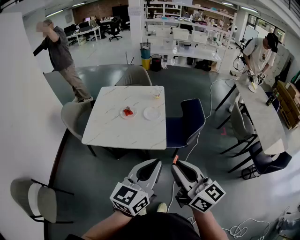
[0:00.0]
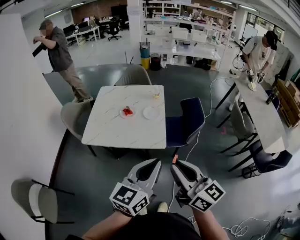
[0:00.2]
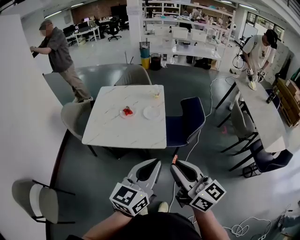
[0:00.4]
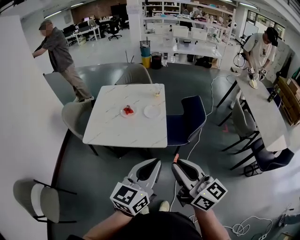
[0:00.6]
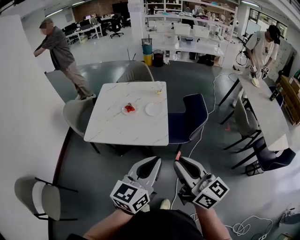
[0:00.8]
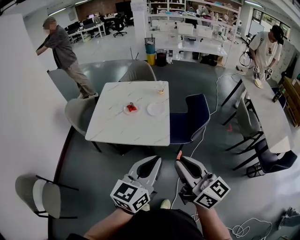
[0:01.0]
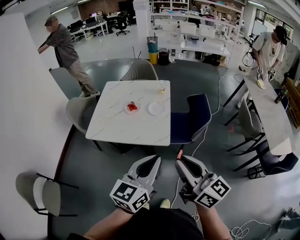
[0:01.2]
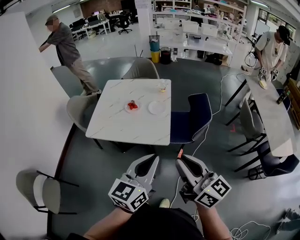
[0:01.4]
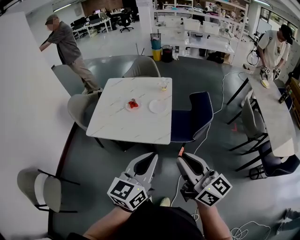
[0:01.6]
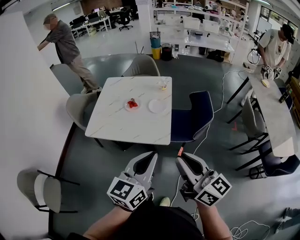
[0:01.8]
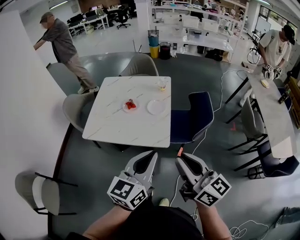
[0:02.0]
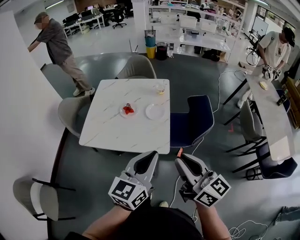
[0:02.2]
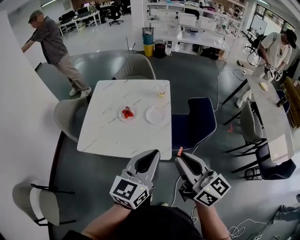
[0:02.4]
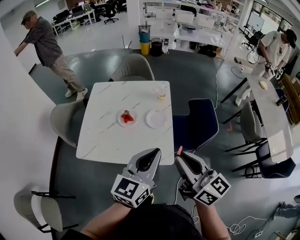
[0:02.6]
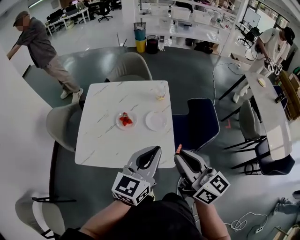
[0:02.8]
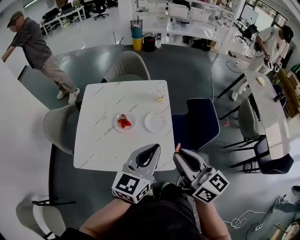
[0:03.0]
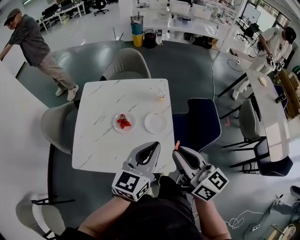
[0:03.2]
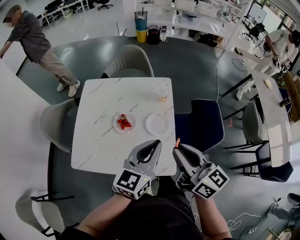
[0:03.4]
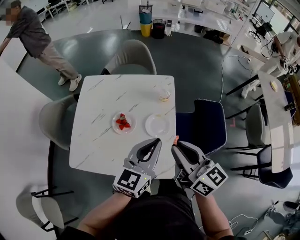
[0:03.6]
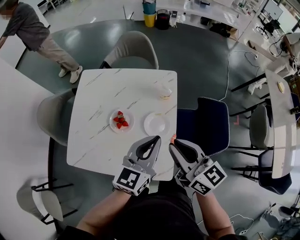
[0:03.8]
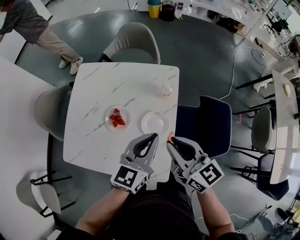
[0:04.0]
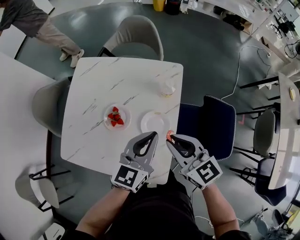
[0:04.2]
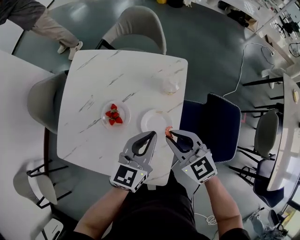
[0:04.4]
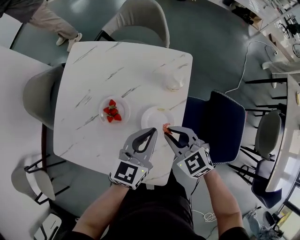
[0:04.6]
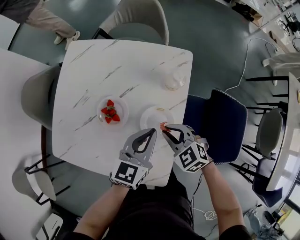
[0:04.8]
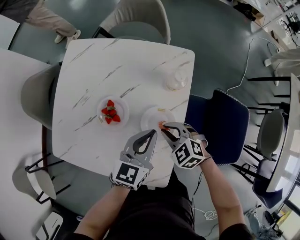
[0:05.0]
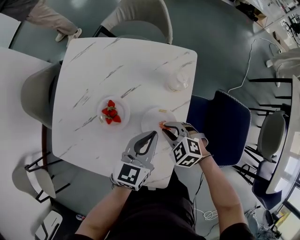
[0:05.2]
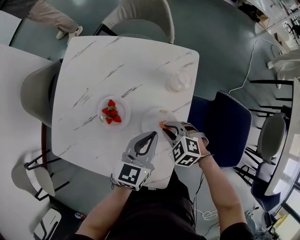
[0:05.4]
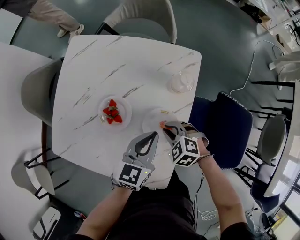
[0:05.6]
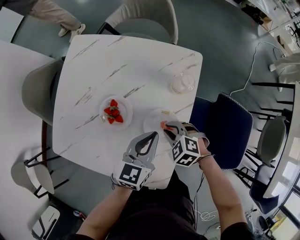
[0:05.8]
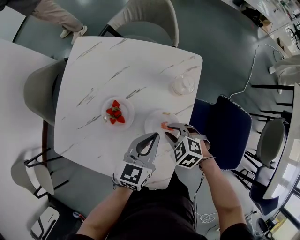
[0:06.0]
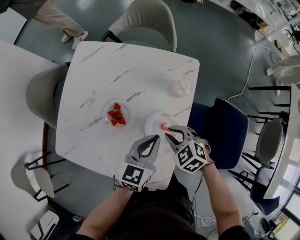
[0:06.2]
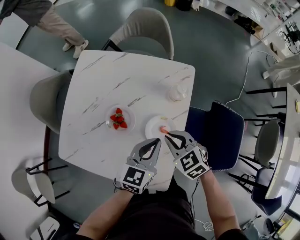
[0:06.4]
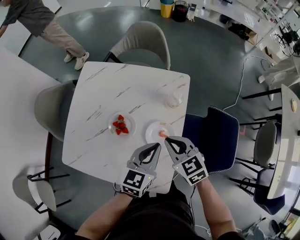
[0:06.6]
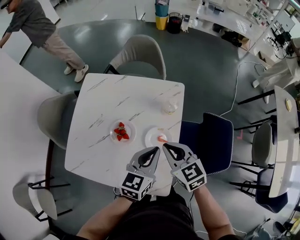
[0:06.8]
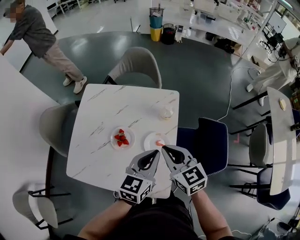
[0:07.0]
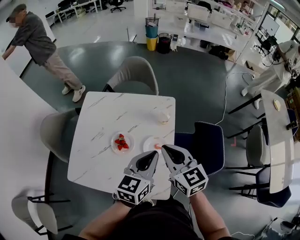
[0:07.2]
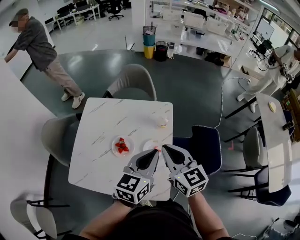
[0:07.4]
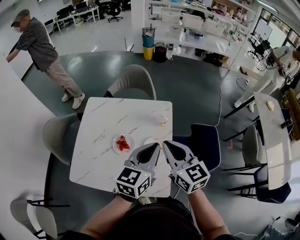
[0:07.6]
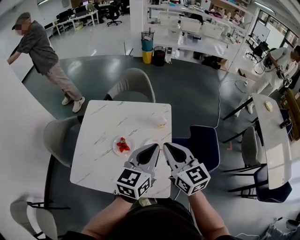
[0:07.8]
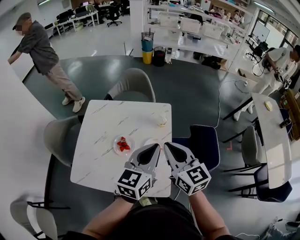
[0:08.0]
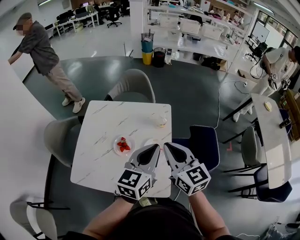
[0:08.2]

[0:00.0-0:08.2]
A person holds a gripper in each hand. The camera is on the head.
0:00.0 to 0:01.6: The right gripper ends up approximately 5 cm from where it was.
0:01.6 to 0:03.2: The two grippers go approximately 30 cm forward.
0:03.2 to 0:05.0: The two grippers go roughly 35 cm downward and forward. The left gripper turns by about 20 degrees. The right gripper points its fingers some 50 degrees further downward.
0:05.0 to 0:06.6: The right gripper travels upward by some 15 cm, and turns by some 30 degrees, while the left gripper moves upward, approximately 5 cm.
0:06.6 to 0:08.2: Both grippers travel together upward, approximately 20 cm. The right gripper swivels approximately 30 degrees.

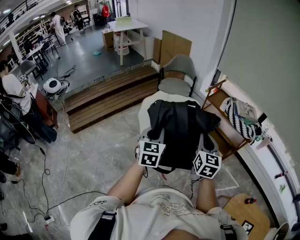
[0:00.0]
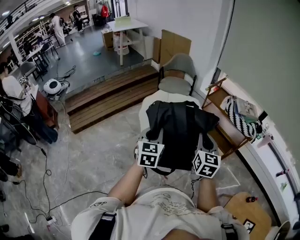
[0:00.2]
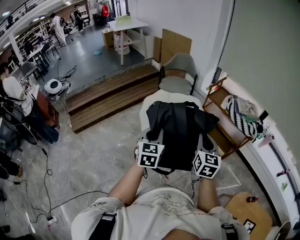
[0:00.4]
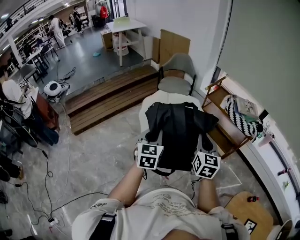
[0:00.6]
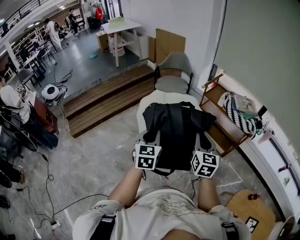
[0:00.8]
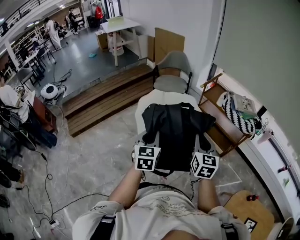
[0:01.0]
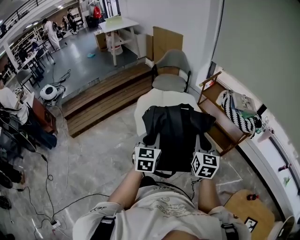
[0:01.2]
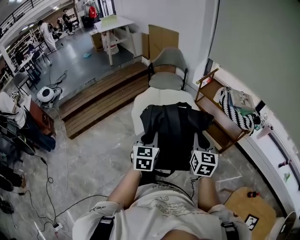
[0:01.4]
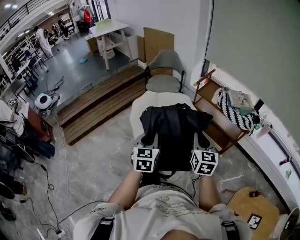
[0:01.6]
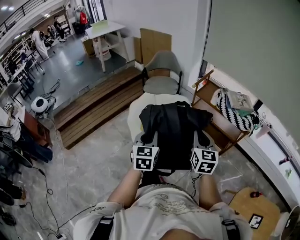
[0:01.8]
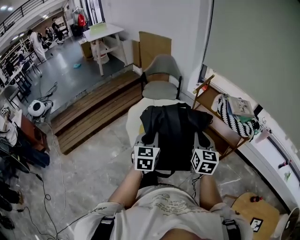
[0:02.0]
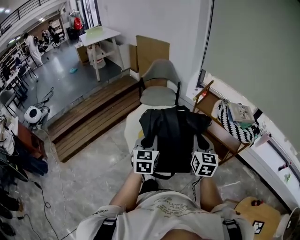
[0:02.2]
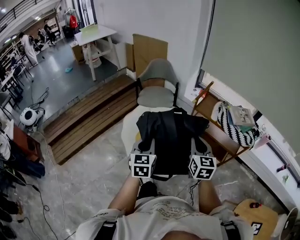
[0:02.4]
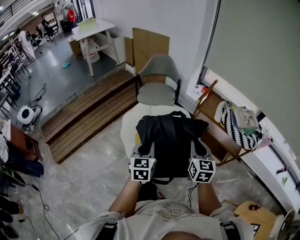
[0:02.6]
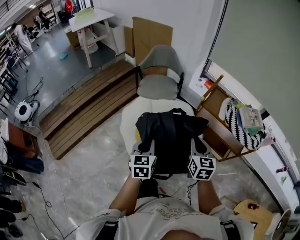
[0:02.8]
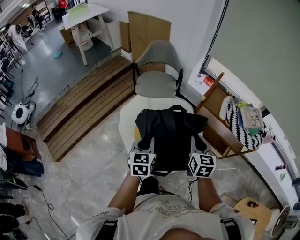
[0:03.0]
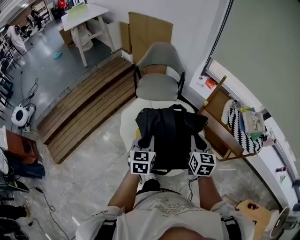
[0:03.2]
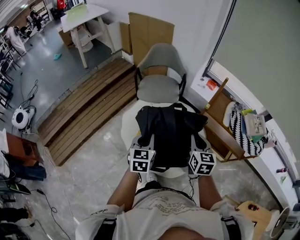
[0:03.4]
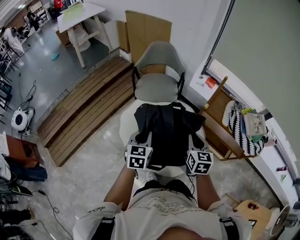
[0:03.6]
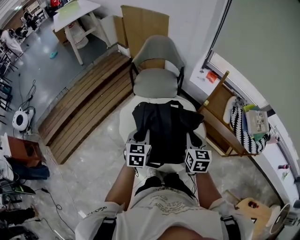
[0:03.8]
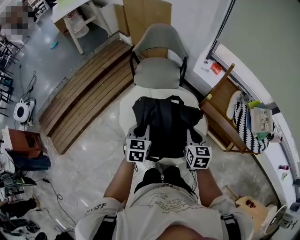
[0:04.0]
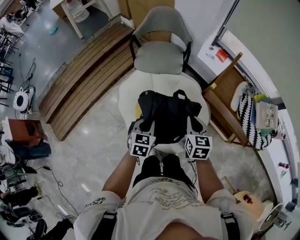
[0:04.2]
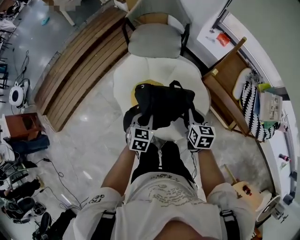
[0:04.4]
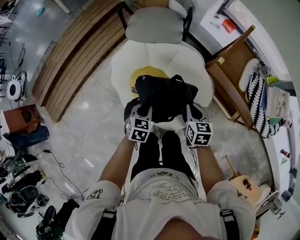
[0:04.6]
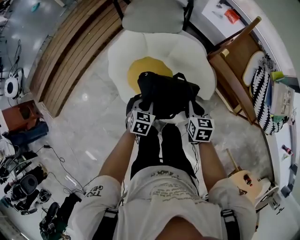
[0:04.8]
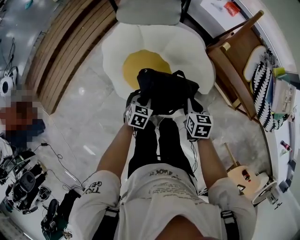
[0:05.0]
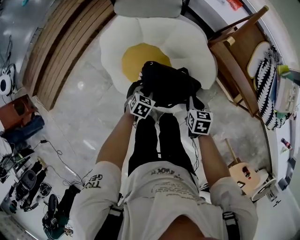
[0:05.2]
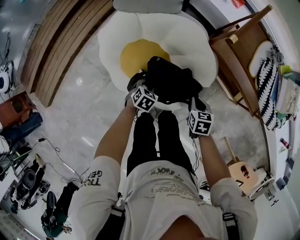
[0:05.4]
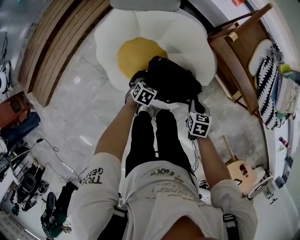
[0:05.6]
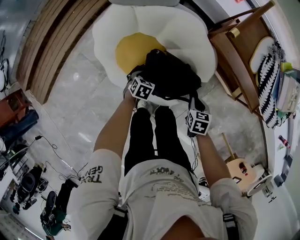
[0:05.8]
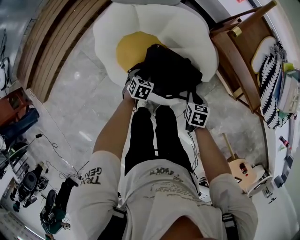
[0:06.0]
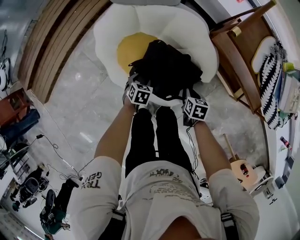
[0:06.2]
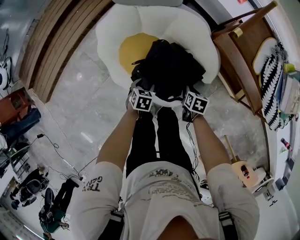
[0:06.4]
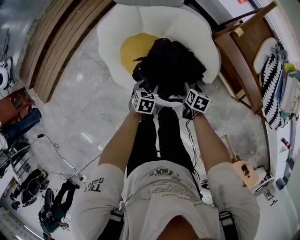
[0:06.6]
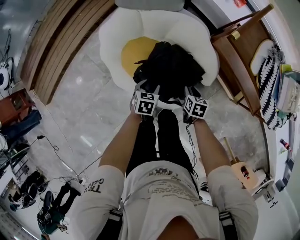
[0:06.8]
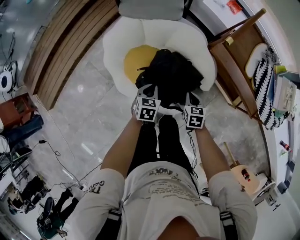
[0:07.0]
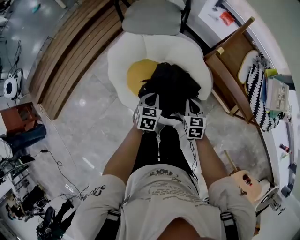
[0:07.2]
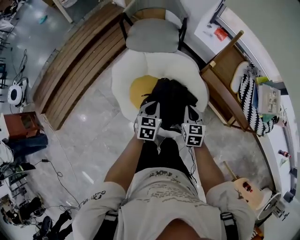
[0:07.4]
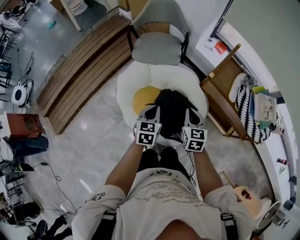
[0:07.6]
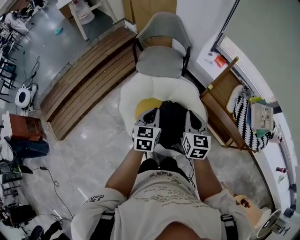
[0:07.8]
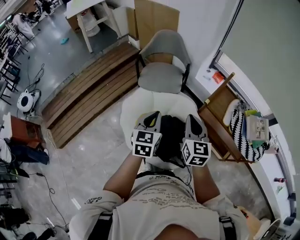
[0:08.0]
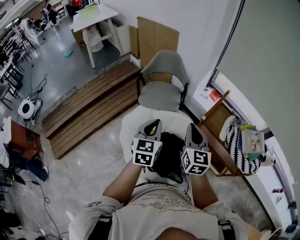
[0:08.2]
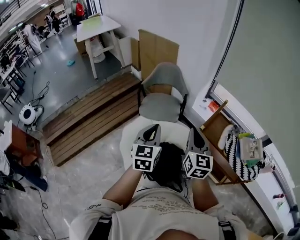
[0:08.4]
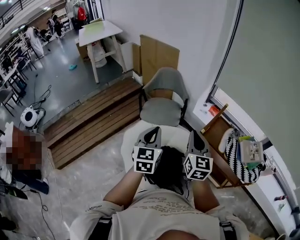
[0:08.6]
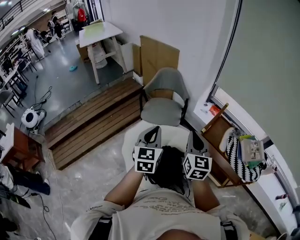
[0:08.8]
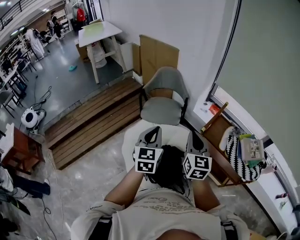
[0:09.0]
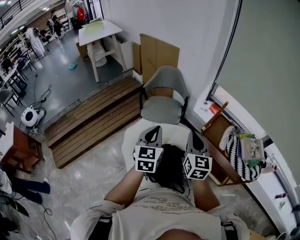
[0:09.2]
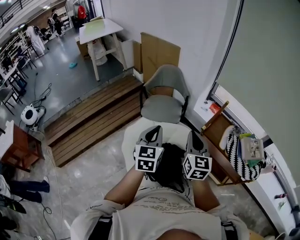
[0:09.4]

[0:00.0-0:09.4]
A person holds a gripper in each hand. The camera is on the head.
0:00.0 to 0:01.6: The right gripper goes roughly 10 cm forward and to the right; the left gripper travels forward by approximately 5 cm.
0:01.6 to 0:03.2: The two grippers go approximately 30 cm forward.
0:03.2 to 0:04.8: Both grippers travel together downward, about 30 cm. The left gripper turns by some 30 degrees, while the right gripper turns by about 30 degrees.
0:04.8 to 0:06.2: The two grippers go some 15 cm downward. The left gripper opens its fingers.
0:06.2 to 0:07.8: Both grippers travel together upward, roughly 40 cm. The left gripper points its fingers approximately 40 degrees further upward, and closes up. Meanwhile the right gripper points its fingers roughly 40 degrees further upward, and opens, then closes once more.
0:07.8 to 0:09.4: The grippers both shift upward by approximately 15 cm.

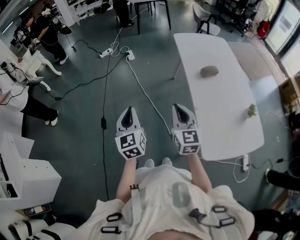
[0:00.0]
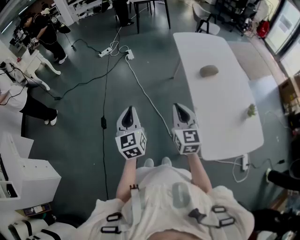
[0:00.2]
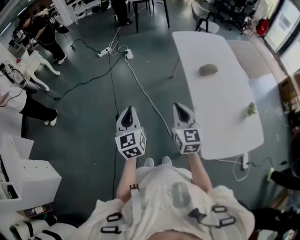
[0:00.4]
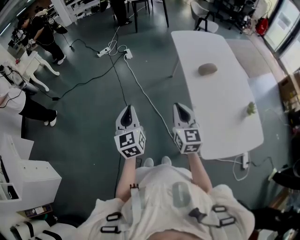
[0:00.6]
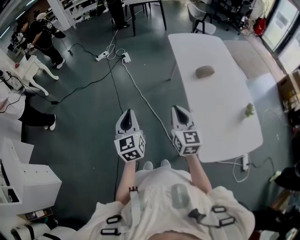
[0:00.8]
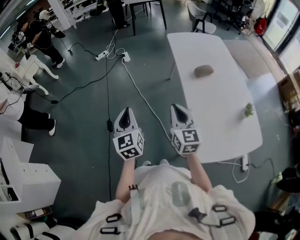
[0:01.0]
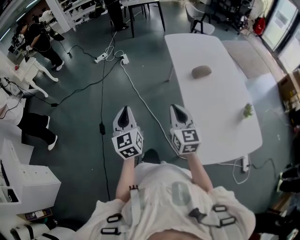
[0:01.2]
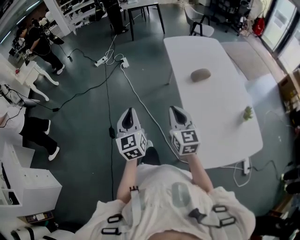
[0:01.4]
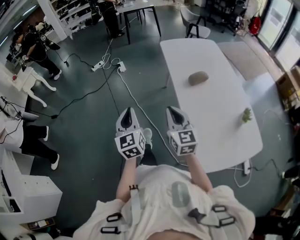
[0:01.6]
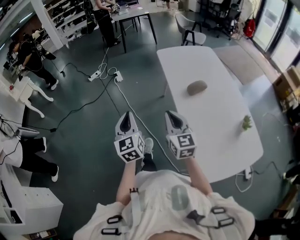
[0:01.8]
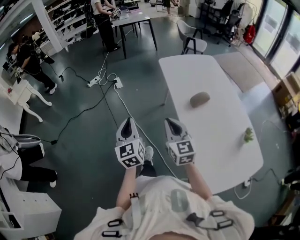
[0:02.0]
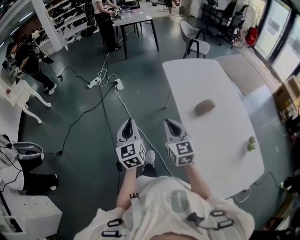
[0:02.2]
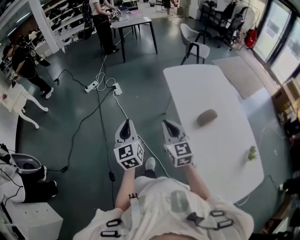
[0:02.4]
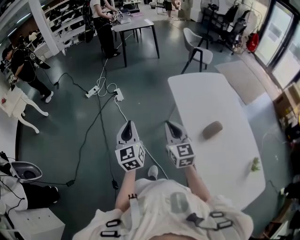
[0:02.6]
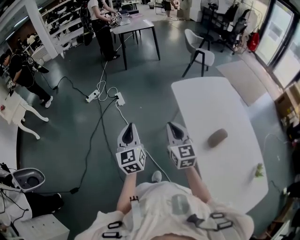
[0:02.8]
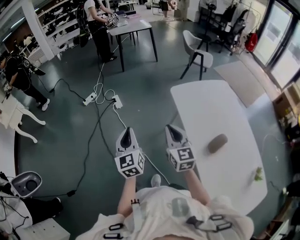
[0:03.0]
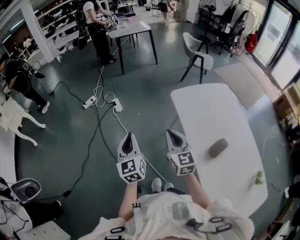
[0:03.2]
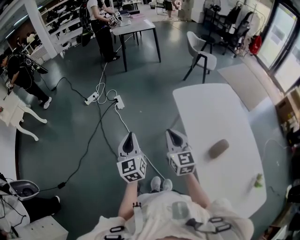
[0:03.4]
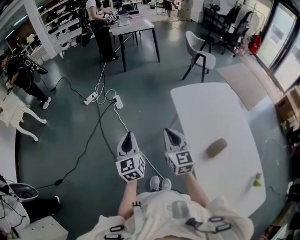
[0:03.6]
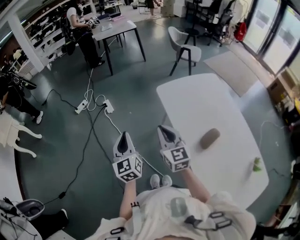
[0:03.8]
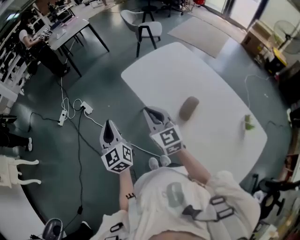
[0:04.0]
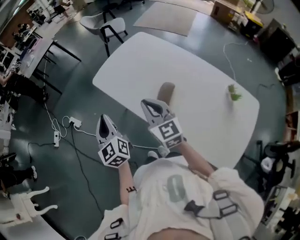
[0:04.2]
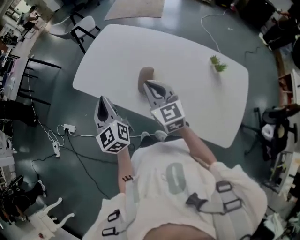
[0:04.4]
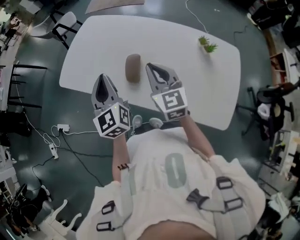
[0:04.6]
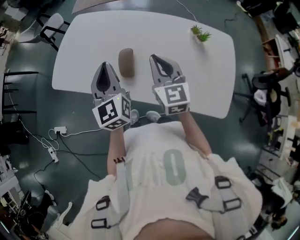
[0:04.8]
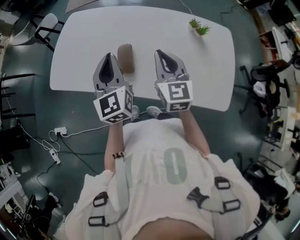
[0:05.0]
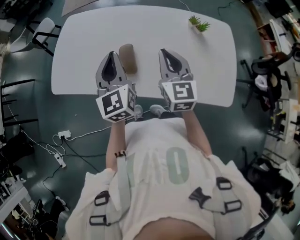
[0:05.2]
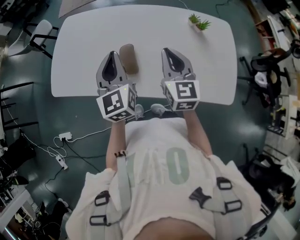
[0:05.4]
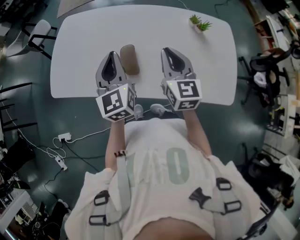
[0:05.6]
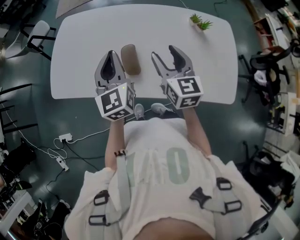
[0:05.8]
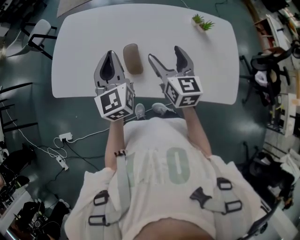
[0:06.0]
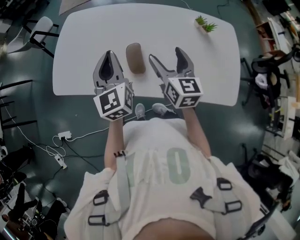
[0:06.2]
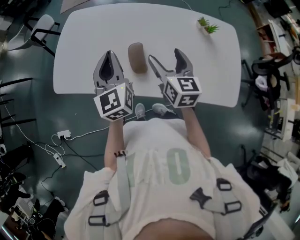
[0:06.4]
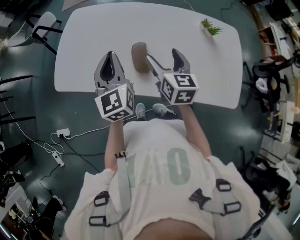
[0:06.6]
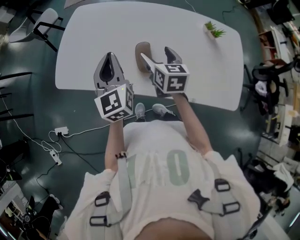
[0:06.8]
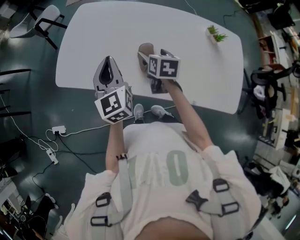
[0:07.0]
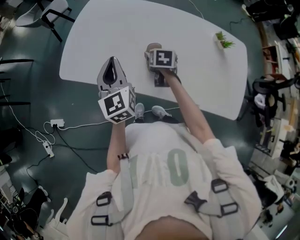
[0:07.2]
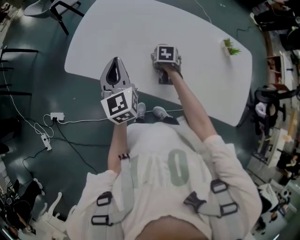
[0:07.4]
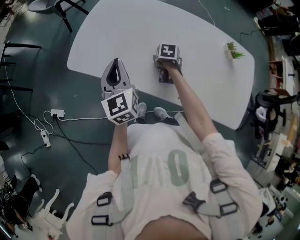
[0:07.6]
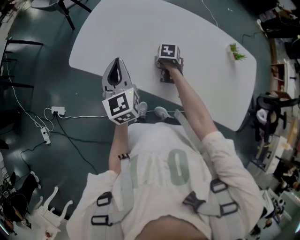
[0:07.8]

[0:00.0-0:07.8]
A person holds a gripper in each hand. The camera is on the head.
0:00.0 to 0:01.6: The grippers both shift to the right and forward by some 10 cm.
0:01.6 to 0:03.2: Both grippers are carried forward, roughly 40 cm.
0:03.2 to 0:04.6: The left gripper ends up approximately 40 cm from where it was, and turns by approximately 50 degrees. The right gripper changes place by approximately 40 cm, and turns by approximately 50 degrees.
0:04.6 to 0:06.2: The right gripper swivels approximately 30 degrees, and opens, while the left gripper travels forward by about 10 cm.
0:06.2 to 0:07.8: The left gripper ends up about 15 cm from where it was. Meanwhile the right gripper travels downward by approximately 25 cm, and tilts its fingers approximately 60 degrees downward.
